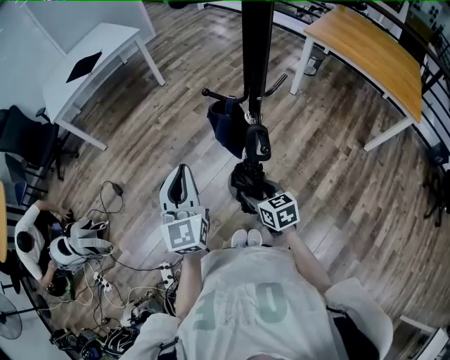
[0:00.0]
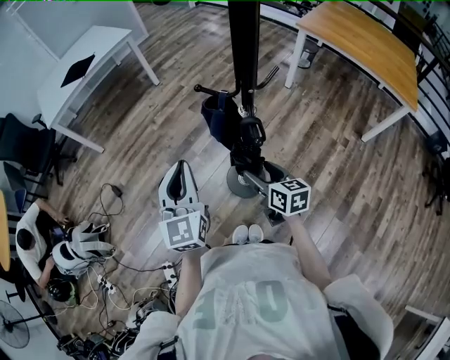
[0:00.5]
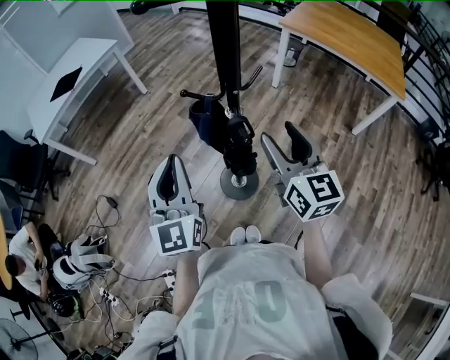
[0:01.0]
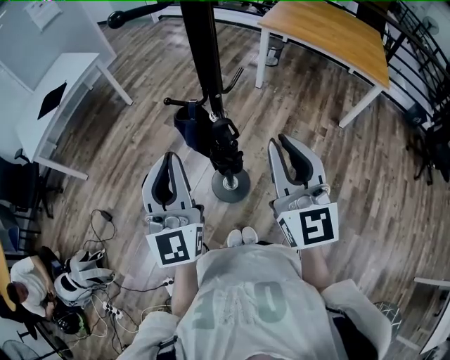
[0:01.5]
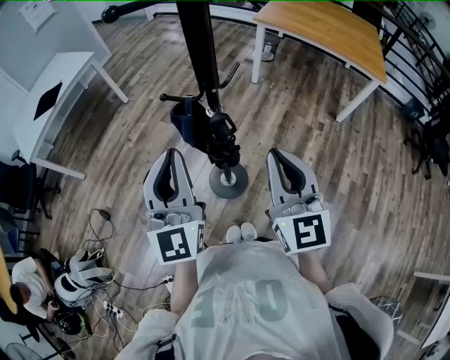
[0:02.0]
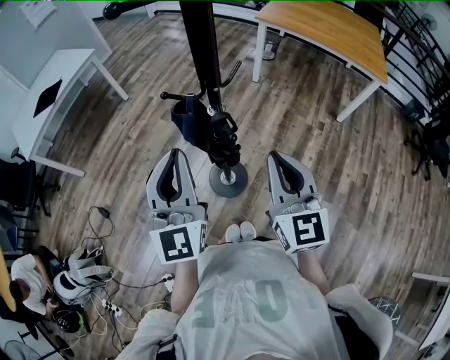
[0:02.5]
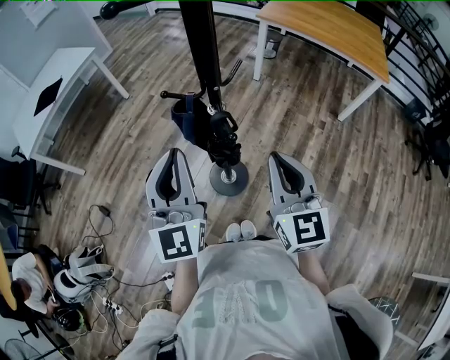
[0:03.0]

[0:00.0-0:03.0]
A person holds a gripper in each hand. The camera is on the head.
0:00.0 to 0:01.5: The left gripper goes approximately 15 cm upward and to the right, and turns by about 20 degrees, while the right gripper travels upward by about 30 cm, tilts its fingers roughly 40 degrees upward, and closes.
0:01.5 to 0:03.0: The right gripper shifts approximately 5 cm downward.

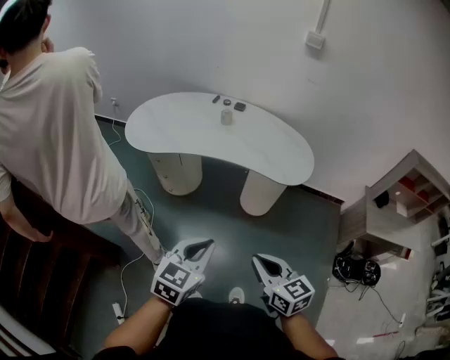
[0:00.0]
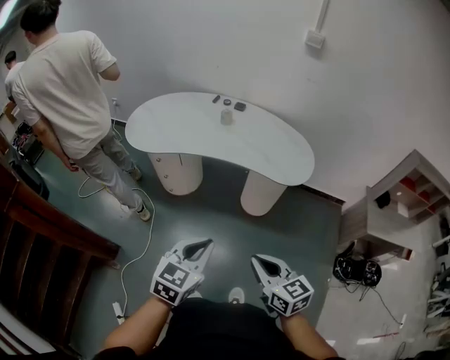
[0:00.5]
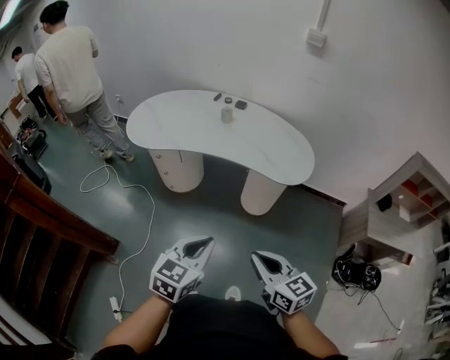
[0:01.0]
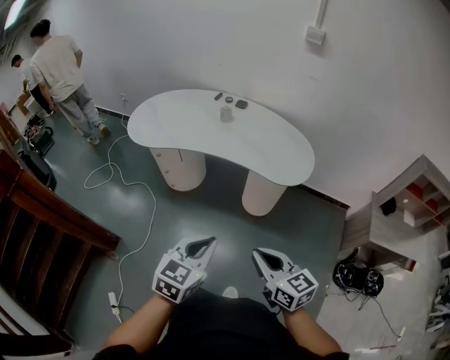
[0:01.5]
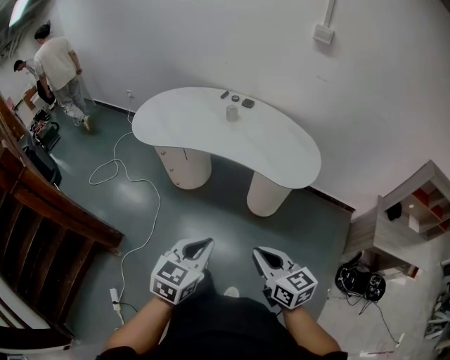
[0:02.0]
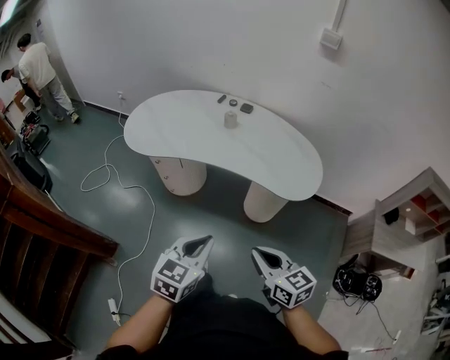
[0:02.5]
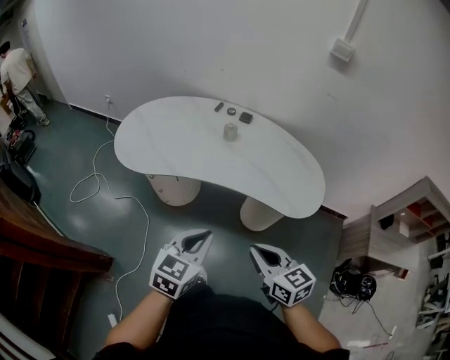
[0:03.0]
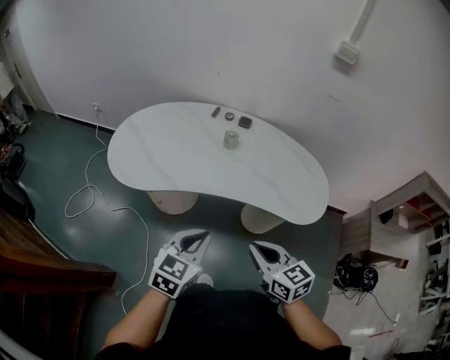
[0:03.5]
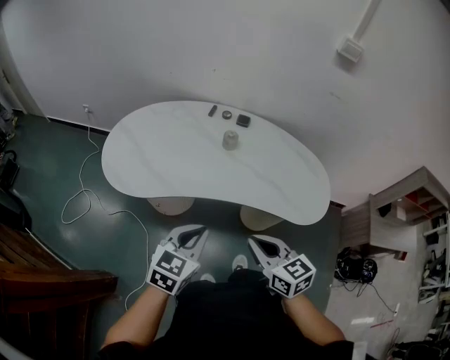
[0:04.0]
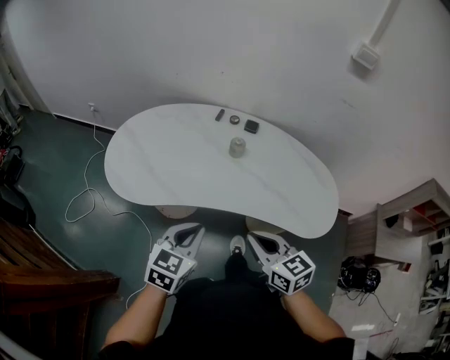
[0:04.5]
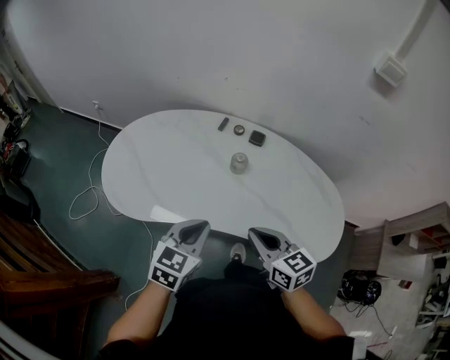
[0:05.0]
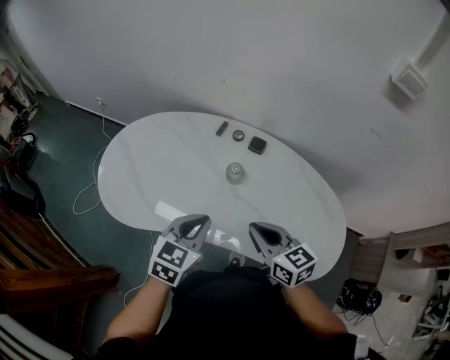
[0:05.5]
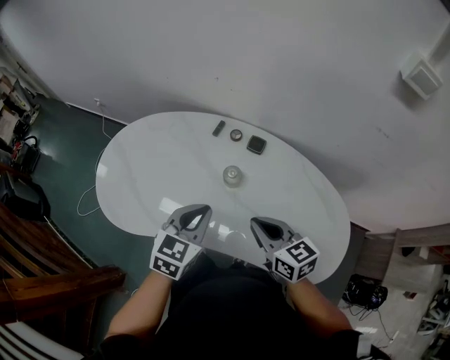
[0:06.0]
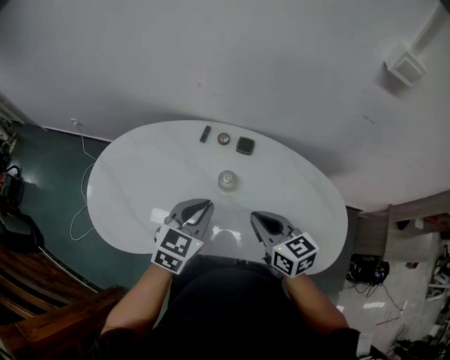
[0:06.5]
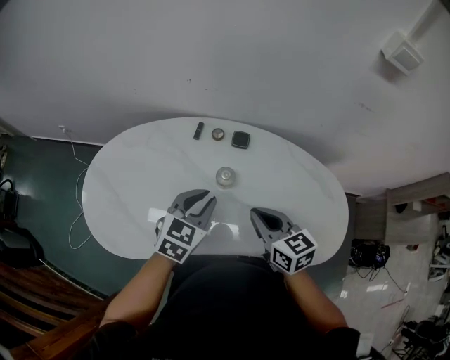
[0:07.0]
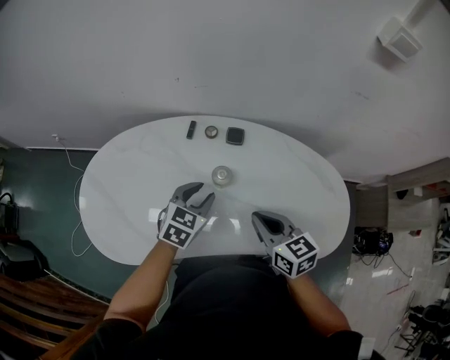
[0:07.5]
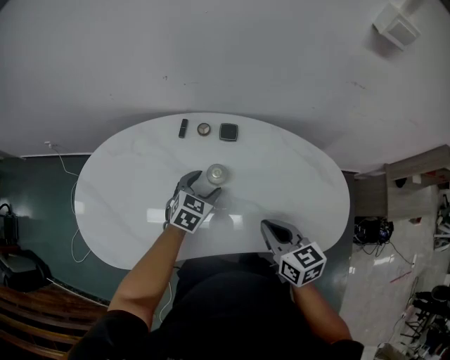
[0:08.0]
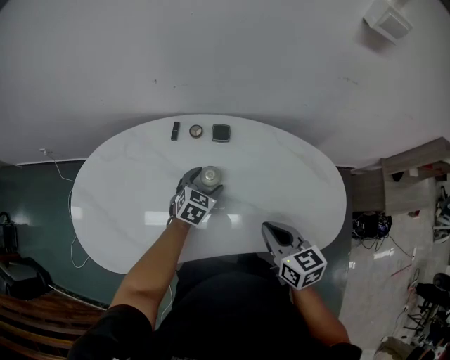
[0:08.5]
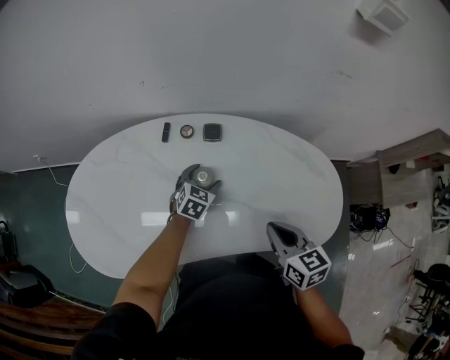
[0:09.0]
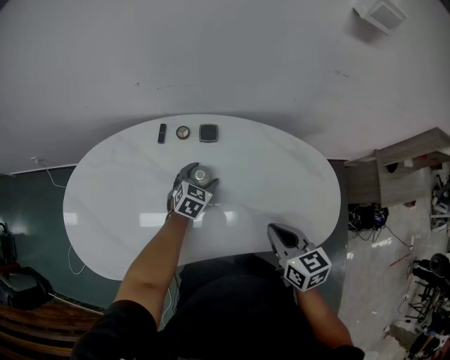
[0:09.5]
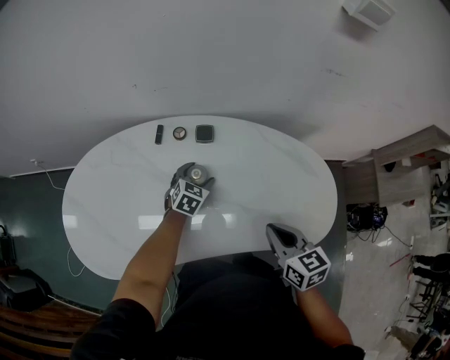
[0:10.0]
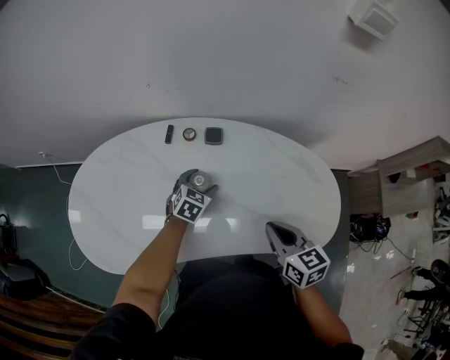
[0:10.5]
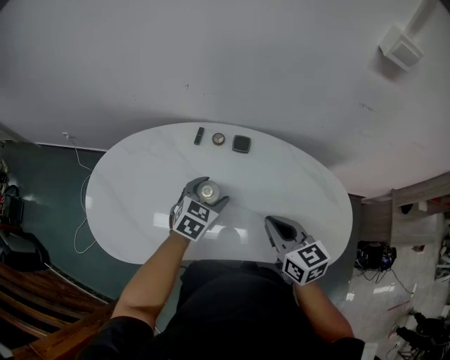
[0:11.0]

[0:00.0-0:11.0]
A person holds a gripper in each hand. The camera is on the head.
0:00.0 to 0:02.0: Both grippers move to the right, approximately 5 cm.
0:02.0 to 0:03.5: The two grippers go approximately 30 cm forward and to the left.
0:03.5 to 0:05.5: Both grippers move forward, approximately 30 cm.
0:05.5 to 0:07.5: The right gripper moves forward, about 5 cm; the left gripper is displaced forward and downward by about 20 cm, swivels approximately 20 degrees, and opens up.
0:07.5 to 0:09.0: The left gripper travels downward, forward and to the right by some 15 cm, and opens up. Meanwhile the right gripper goes approximately 10 cm to the right.
0:09.0 to 0:11.0: The right gripper changes place by roughly 5 cm; the left gripper moves upward and backward, roughly 10 cm.

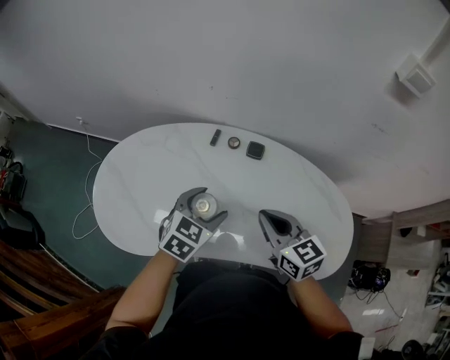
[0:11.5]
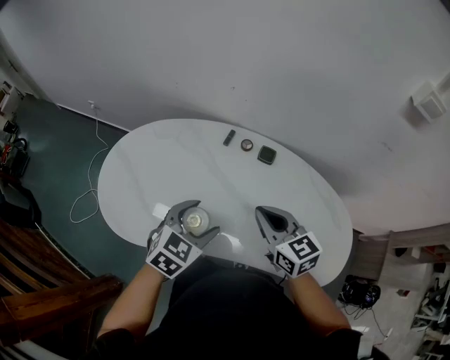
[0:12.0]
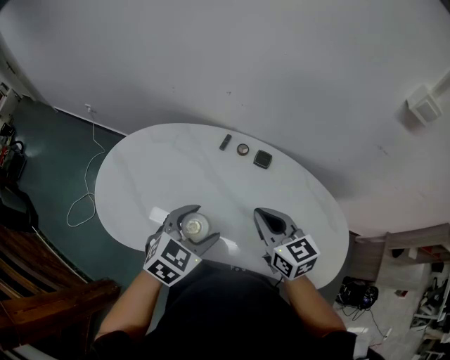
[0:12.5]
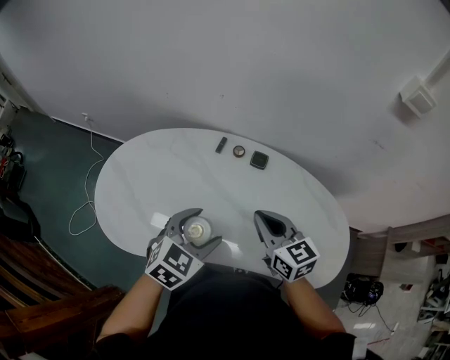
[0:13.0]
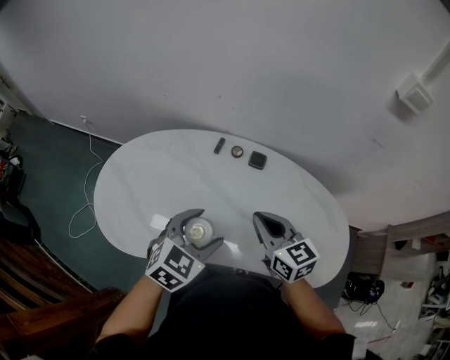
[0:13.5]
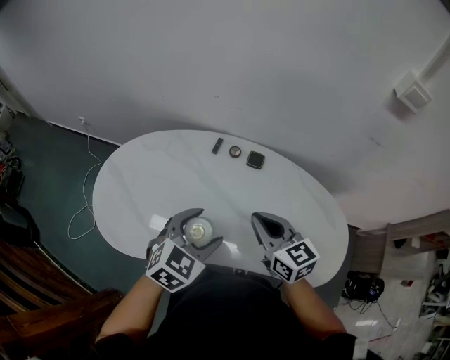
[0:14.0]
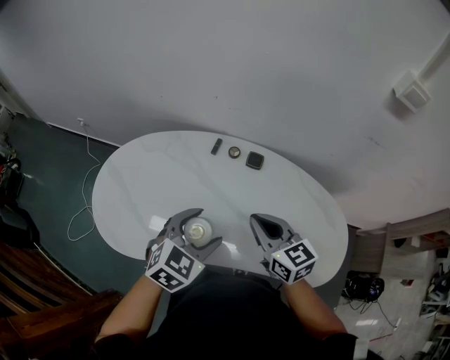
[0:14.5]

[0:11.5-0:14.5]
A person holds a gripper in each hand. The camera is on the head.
0:11.5 to 0:13.0: The left gripper heads backward, covering roughly 5 cm.
0:13.0 to 0:14.5: Both grippers stay about where they are.

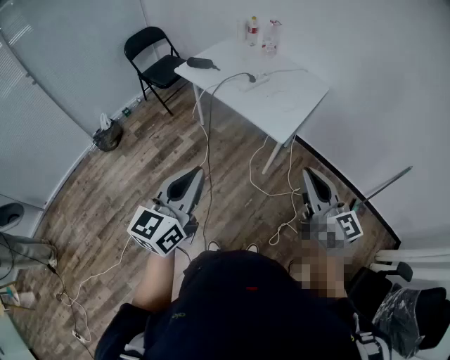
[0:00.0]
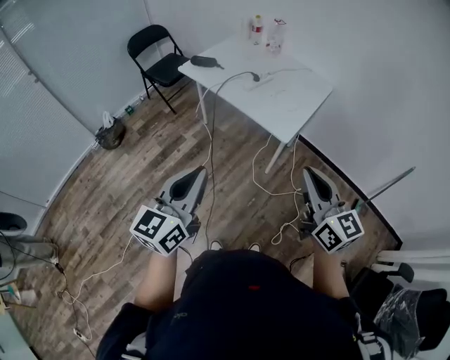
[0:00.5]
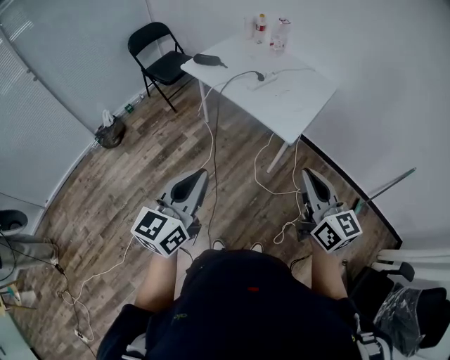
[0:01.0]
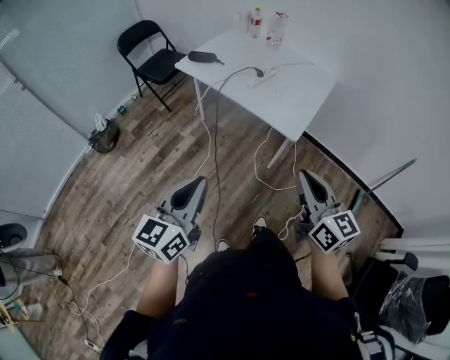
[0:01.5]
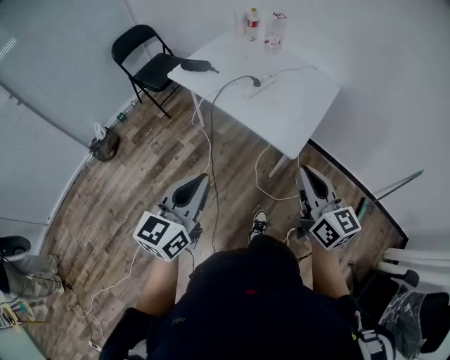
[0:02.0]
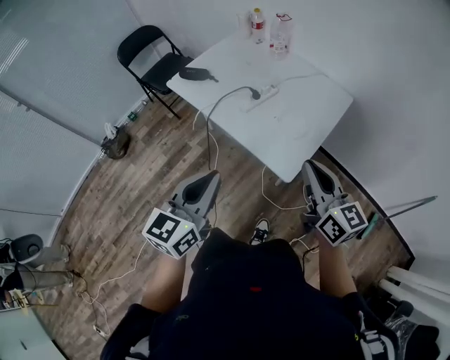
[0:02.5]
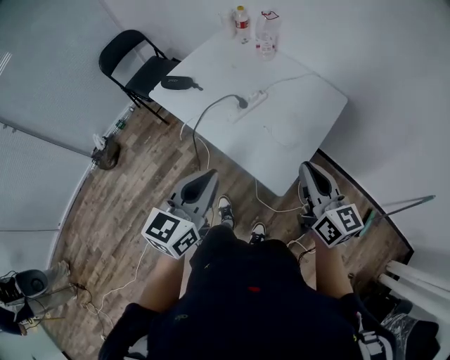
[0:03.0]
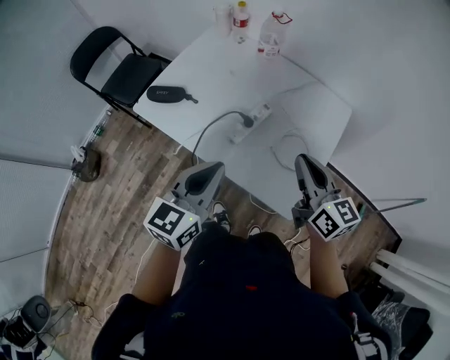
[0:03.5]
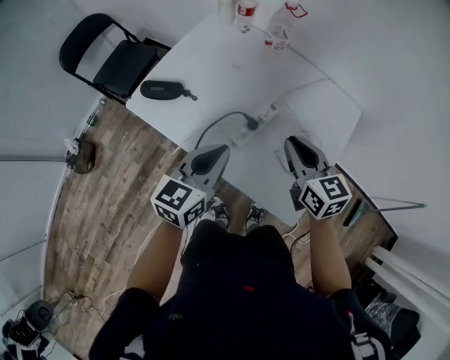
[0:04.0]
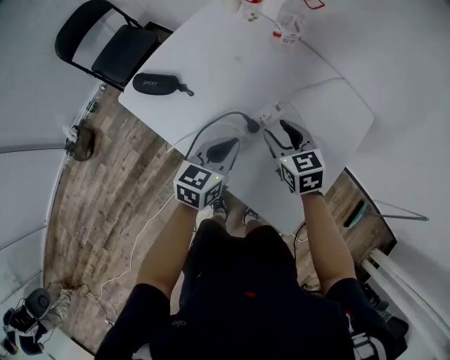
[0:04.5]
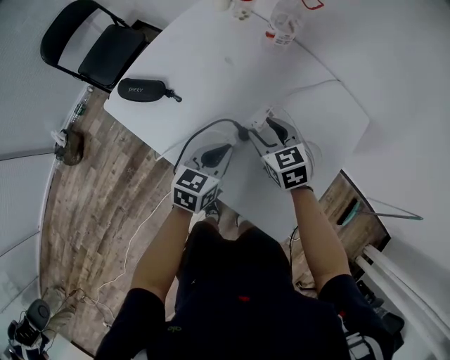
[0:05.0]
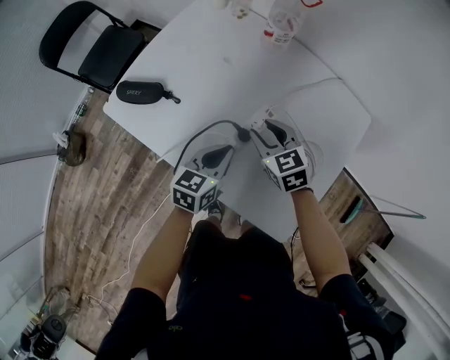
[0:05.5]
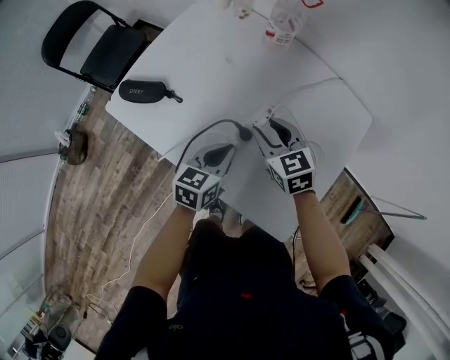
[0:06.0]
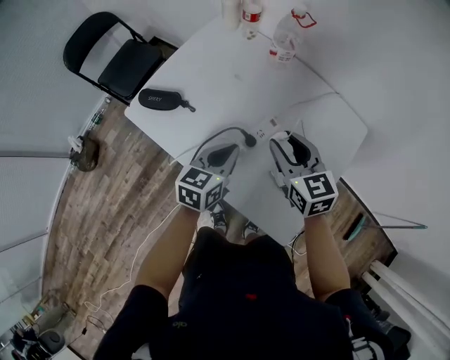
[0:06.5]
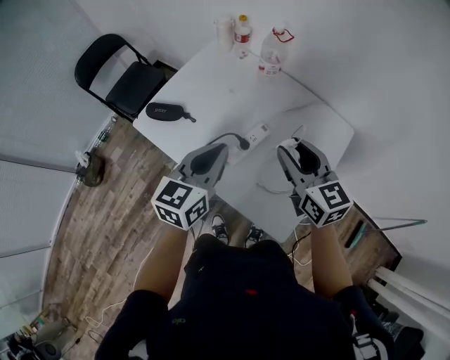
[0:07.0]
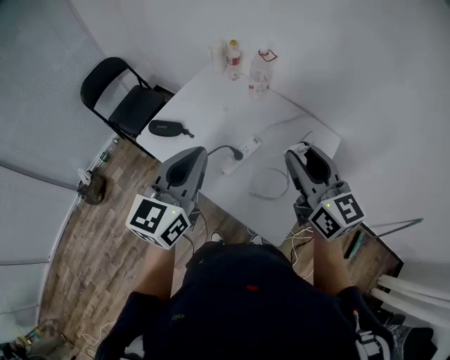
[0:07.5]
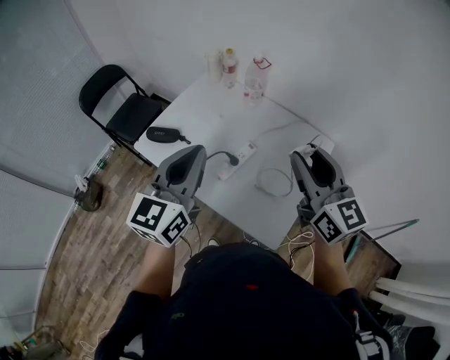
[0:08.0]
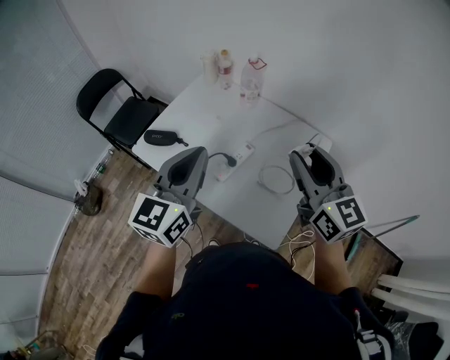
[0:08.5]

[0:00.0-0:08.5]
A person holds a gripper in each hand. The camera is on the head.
0:00.0 to 0:02.0: The grippers both shift forward by some 15 cm.
0:02.0 to 0:04.0: The two grippers travel together, forward, approximately 50 cm. The right gripper turns by some 20 degrees.
0:04.0 to 0:06.5: The left gripper moves downward and forward, some 10 cm. Meanwhile the right gripper travels forward by some 5 cm, goes downward and returns, about 15 cm each way, and opens up.
0:06.5 to 0:08.5: The left gripper goes roughly 30 cm upward, and changes its angle by about 30 degrees. The right gripper is displaced upward and backward by approximately 25 cm, and changes its angle by roughly 30 degrees.

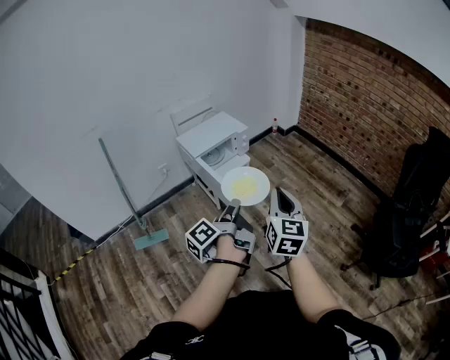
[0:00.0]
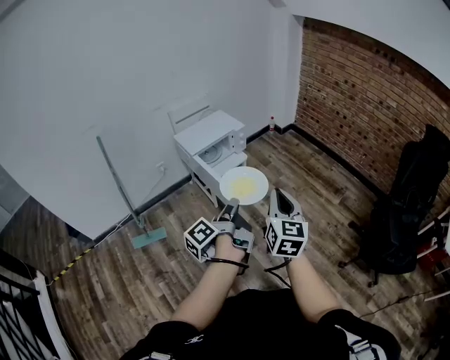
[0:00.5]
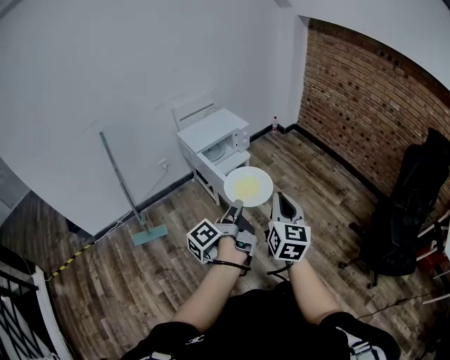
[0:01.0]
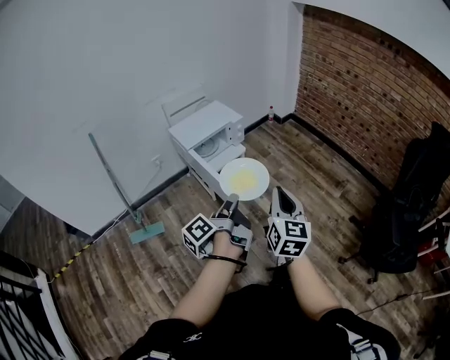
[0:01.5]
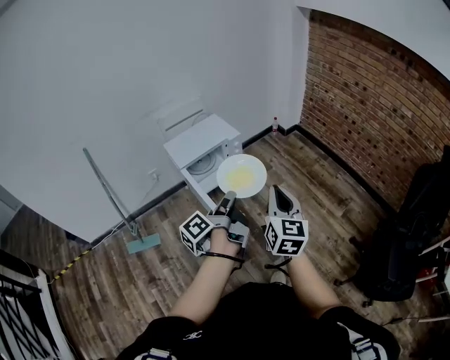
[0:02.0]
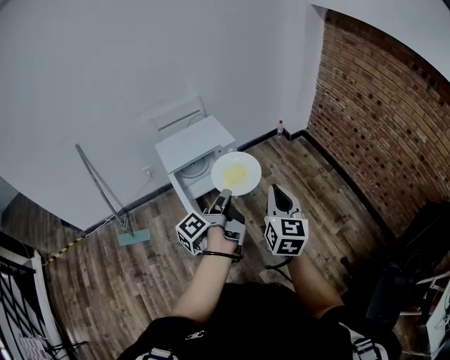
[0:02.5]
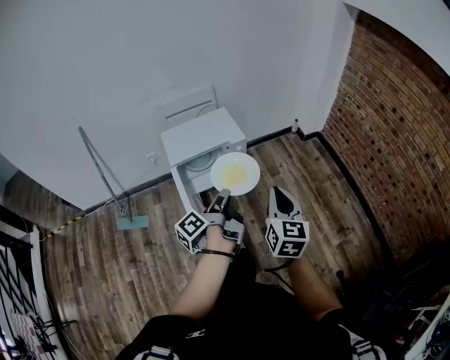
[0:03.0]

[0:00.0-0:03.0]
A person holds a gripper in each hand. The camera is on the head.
0:00.0 to 0:01.5: The grippers move only a little.
0:01.5 to 0:03.0: The grippers both shift forward by some 30 cm.